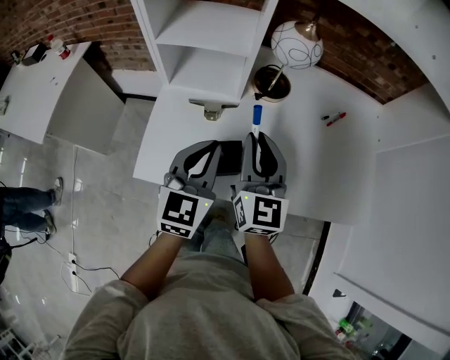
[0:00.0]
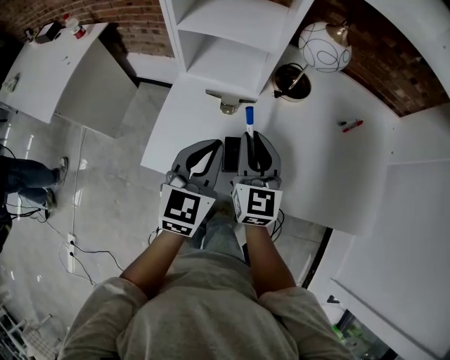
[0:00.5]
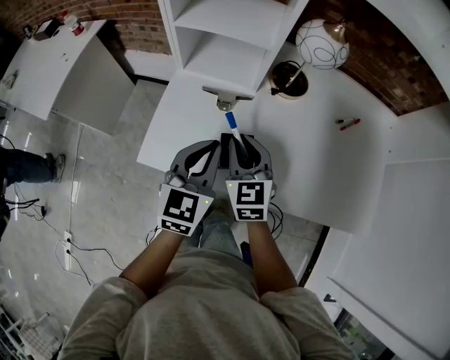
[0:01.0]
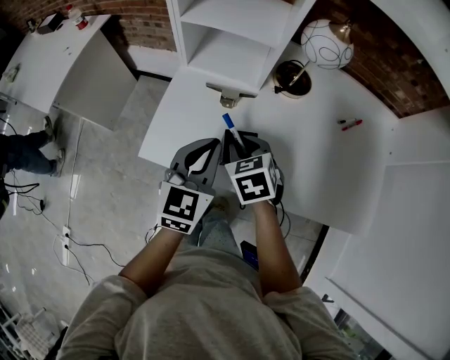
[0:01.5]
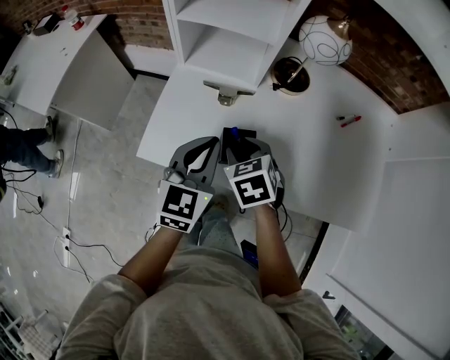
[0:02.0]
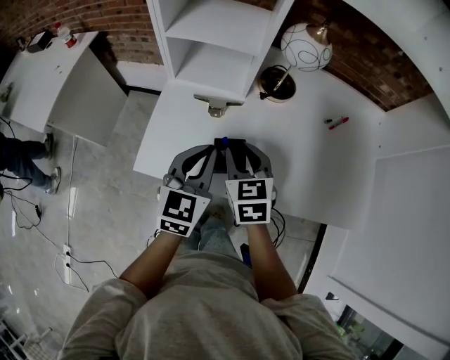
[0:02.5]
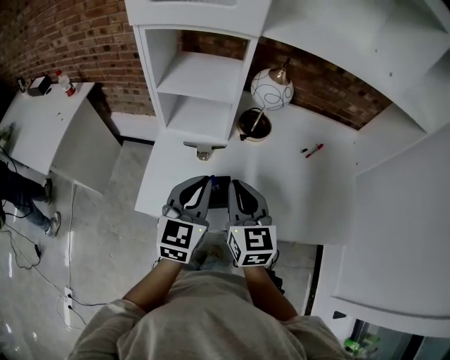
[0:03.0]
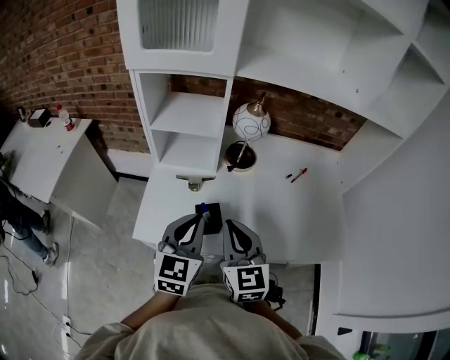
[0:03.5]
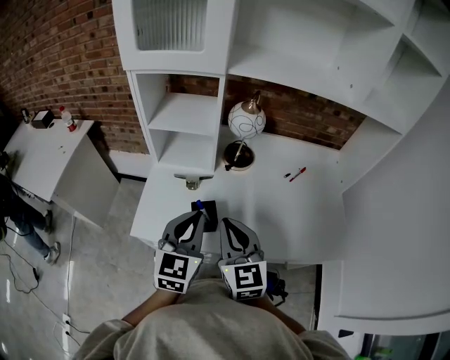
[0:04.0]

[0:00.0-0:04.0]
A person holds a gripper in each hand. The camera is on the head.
0:00.0 to 0:02.0: The right gripper is displaced downward and to the left by roughly 15 cm, and tips its fingers downward by about 50 degrees. Meanwhile the left gripper shifts by about 5 cm.
0:02.0 to 0:04.0: The right gripper is displaced upward and backward by roughly 20 cm, tips its fingers upward by some 50 degrees, and closes its fingers. Meanwhile the left gripper travels upward, backward and to the right by roughly 15 cm.

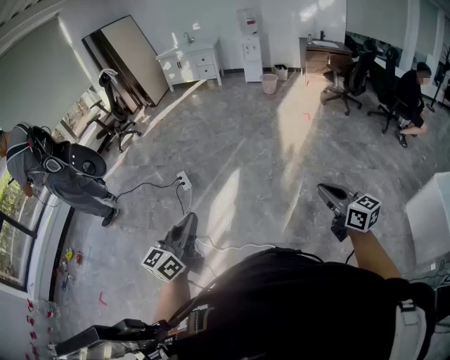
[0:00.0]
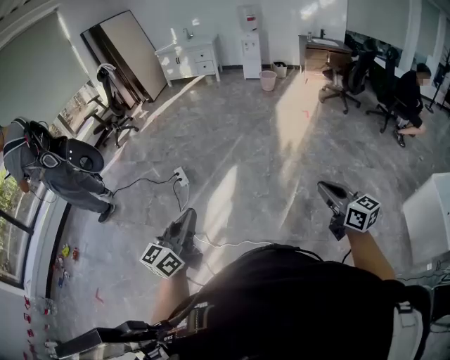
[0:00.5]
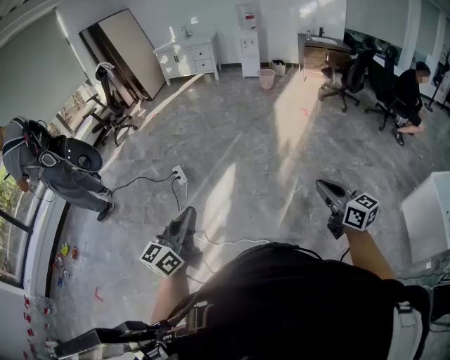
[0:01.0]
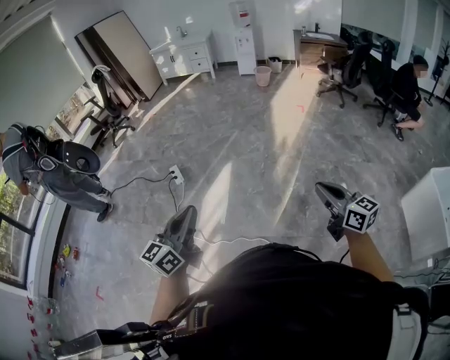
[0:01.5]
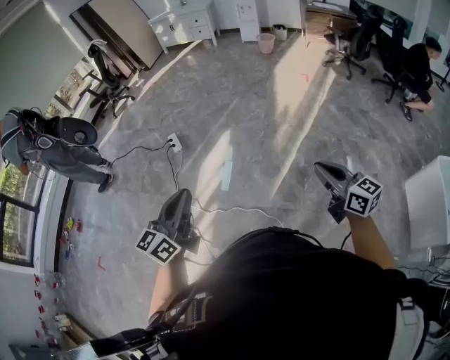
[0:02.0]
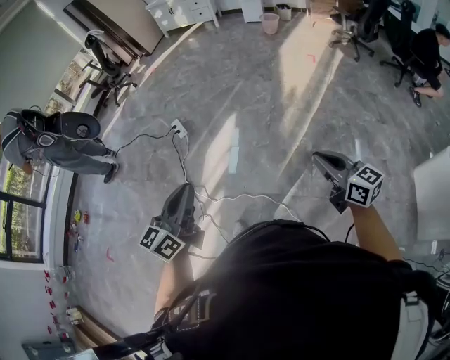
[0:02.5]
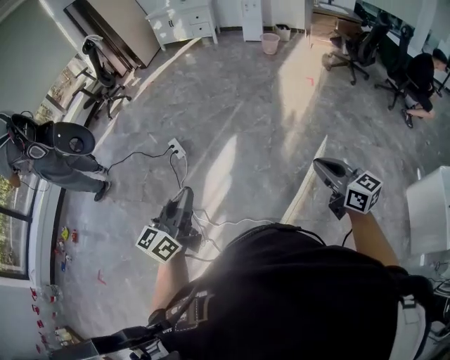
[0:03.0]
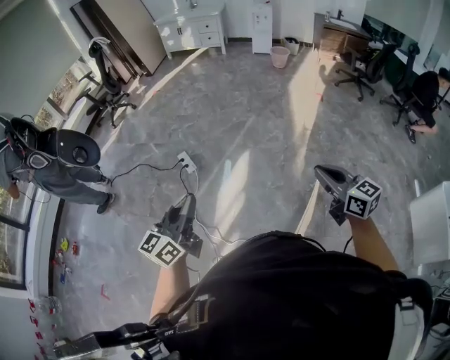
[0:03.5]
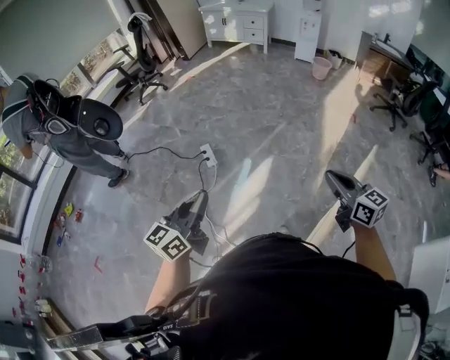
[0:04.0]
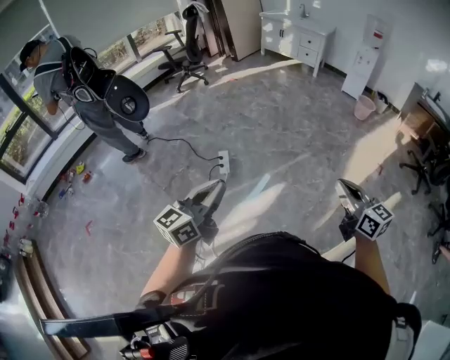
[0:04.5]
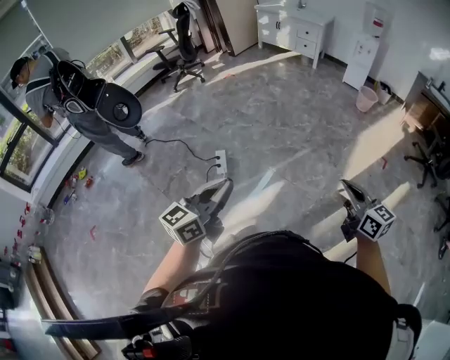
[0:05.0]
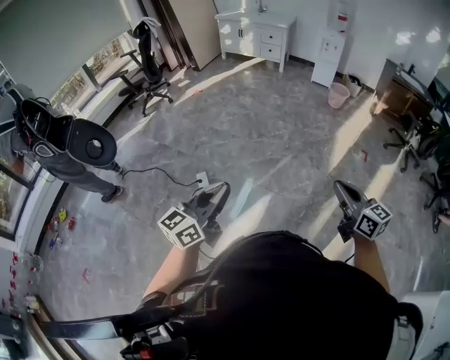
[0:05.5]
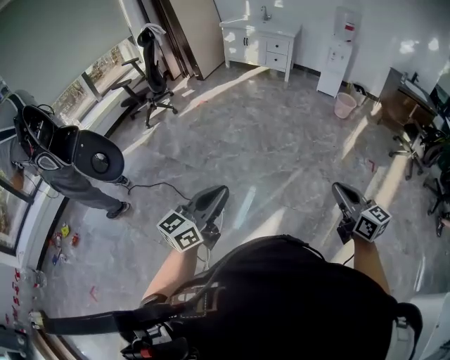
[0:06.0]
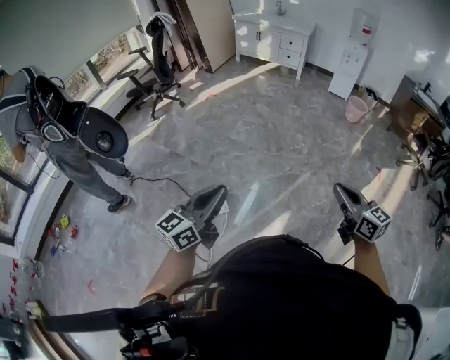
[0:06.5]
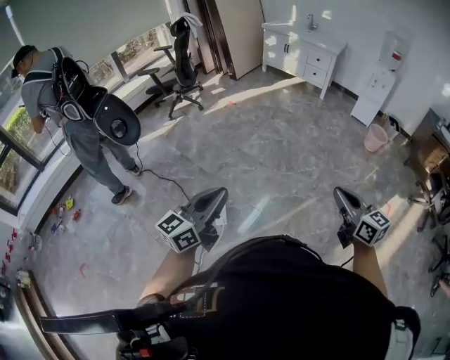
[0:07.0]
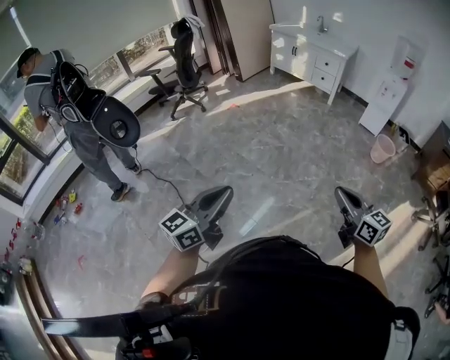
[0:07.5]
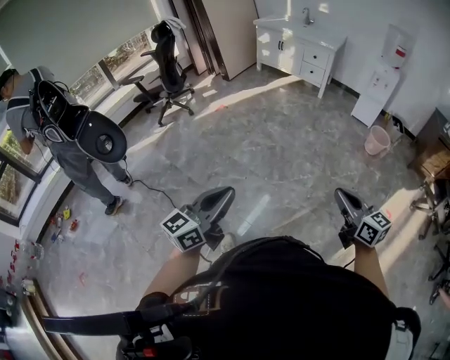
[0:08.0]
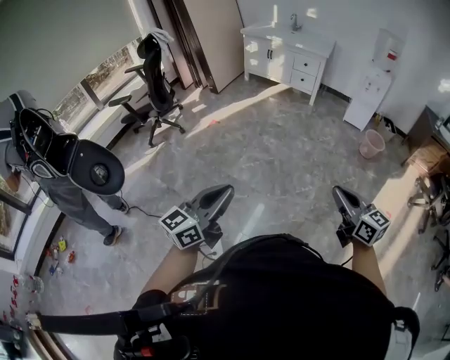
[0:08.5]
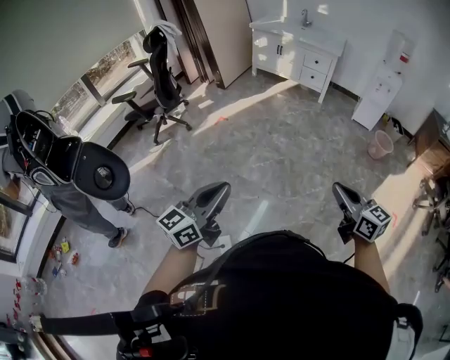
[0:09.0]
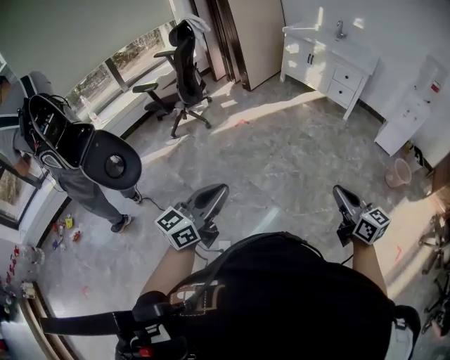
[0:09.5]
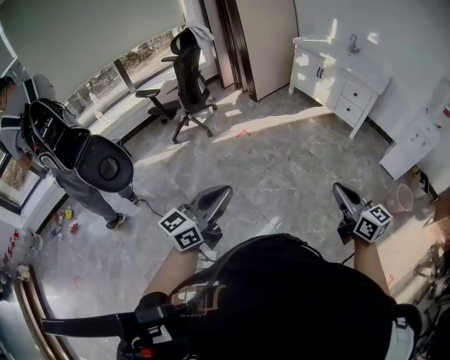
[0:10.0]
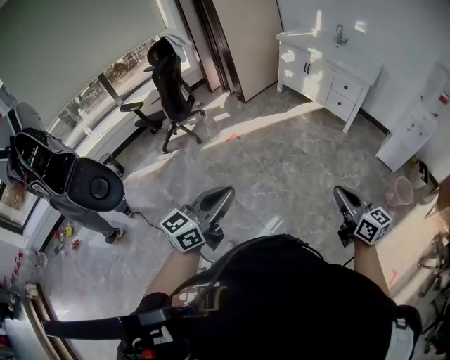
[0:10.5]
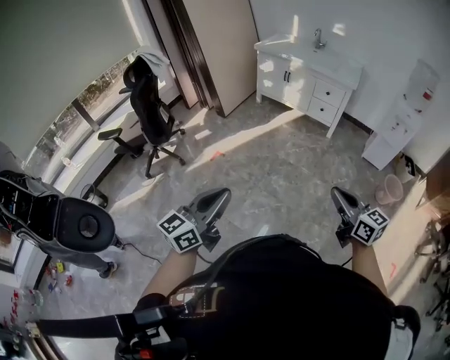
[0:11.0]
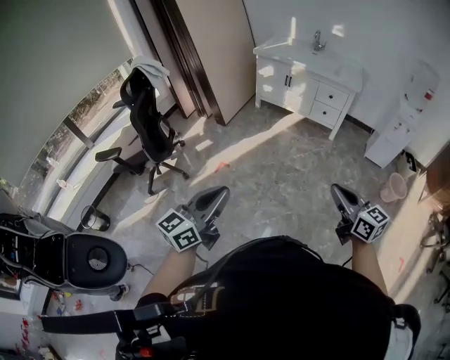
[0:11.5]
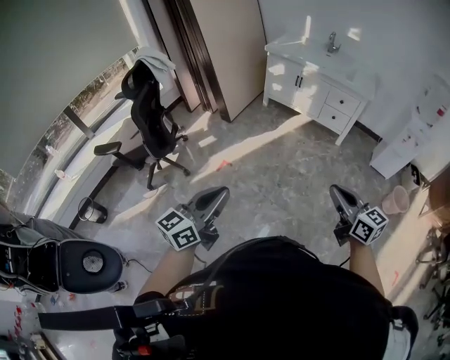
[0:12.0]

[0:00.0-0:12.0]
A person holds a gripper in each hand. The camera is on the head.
0:00.0 to 0:02.0: Both grippers move to the right, about 15 cm.
0:02.0 to 0:04.0: The pair of grippers is taken forward and to the left, some 40 cm.
0:04.0 to 0:06.0: The two grippers travel together, forward, some 40 cm.
0:06.0 to 0:08.0: The grippers both shift forward by some 40 cm.
0:08.0 to 0:10.0: The pair of grippers is taken forward, roughly 40 cm.
0:10.0 to 0:12.0: Both grippers travel together forward, approximately 35 cm.

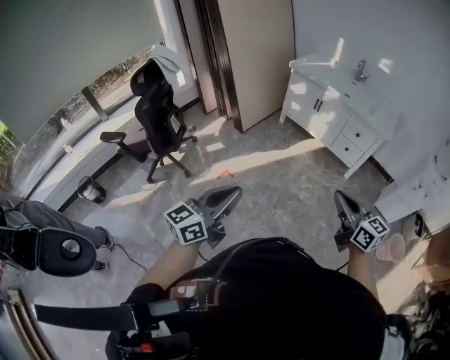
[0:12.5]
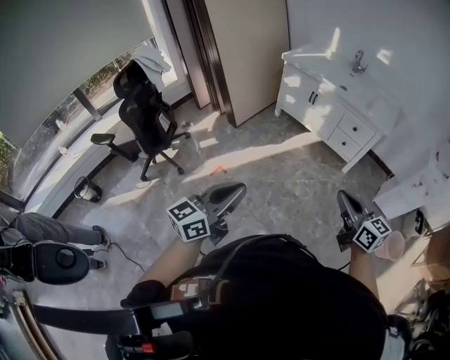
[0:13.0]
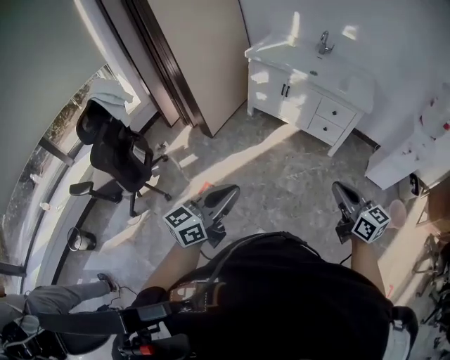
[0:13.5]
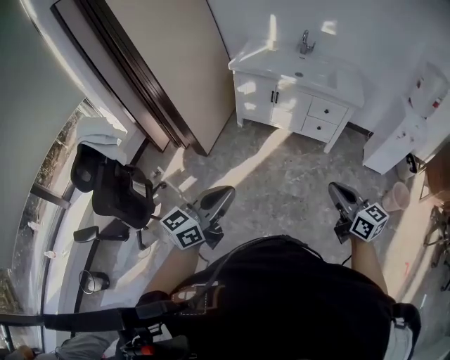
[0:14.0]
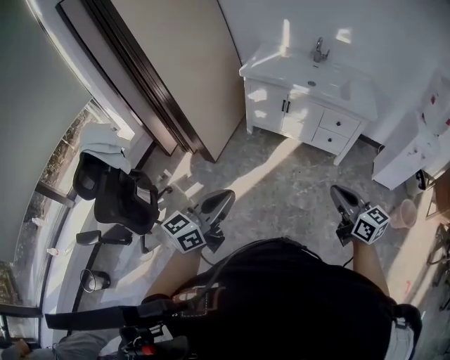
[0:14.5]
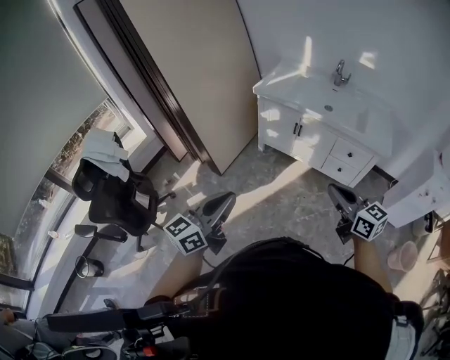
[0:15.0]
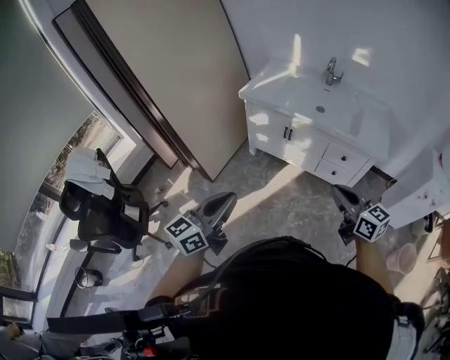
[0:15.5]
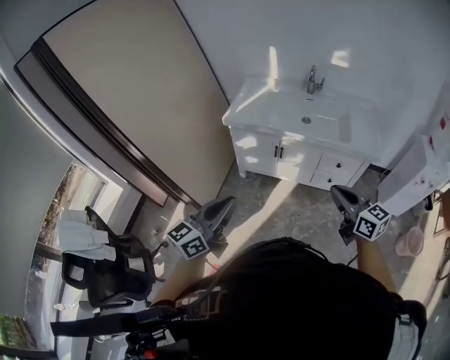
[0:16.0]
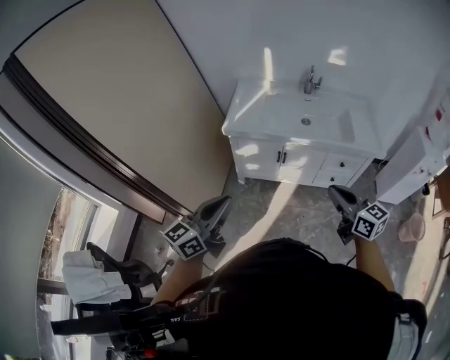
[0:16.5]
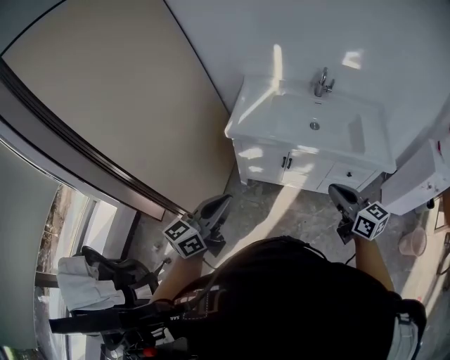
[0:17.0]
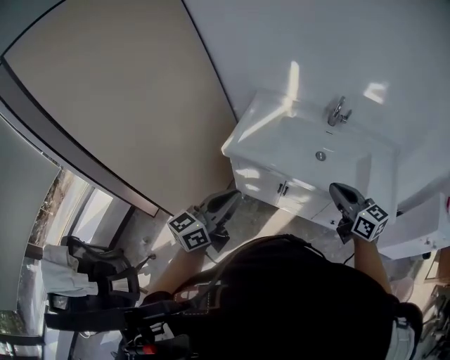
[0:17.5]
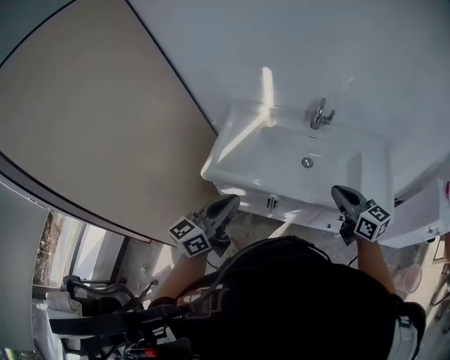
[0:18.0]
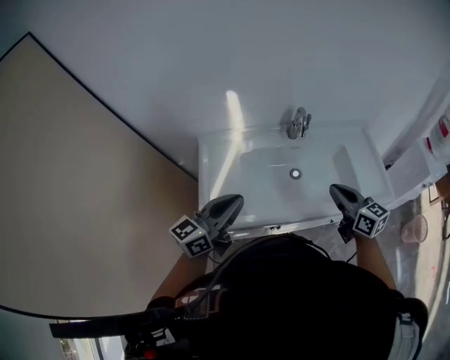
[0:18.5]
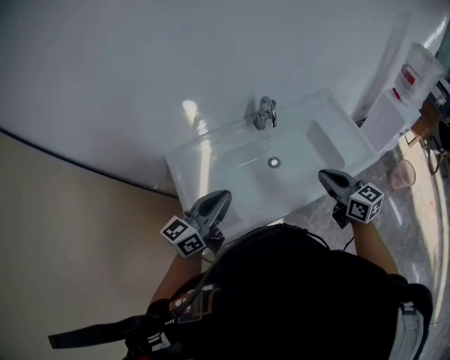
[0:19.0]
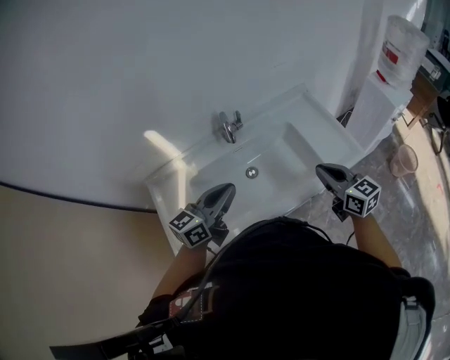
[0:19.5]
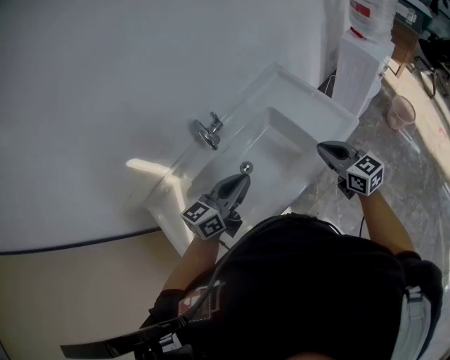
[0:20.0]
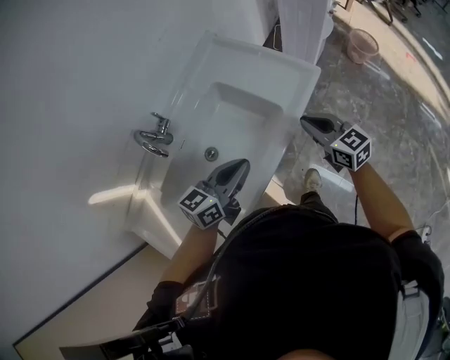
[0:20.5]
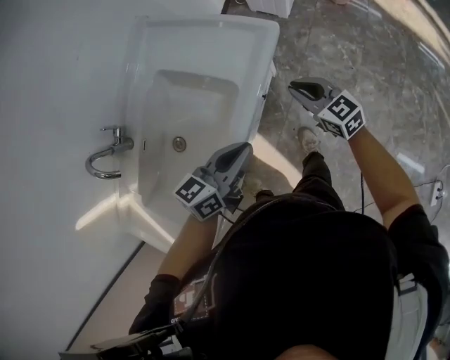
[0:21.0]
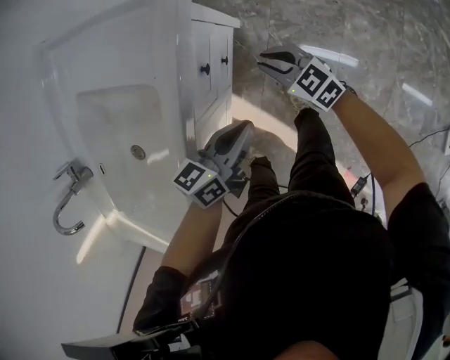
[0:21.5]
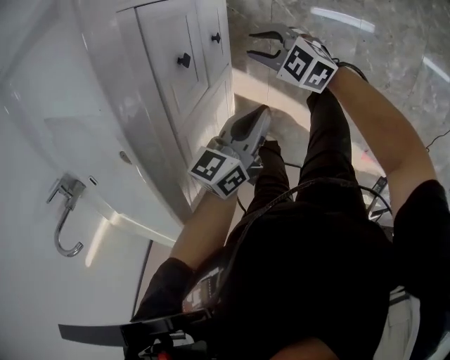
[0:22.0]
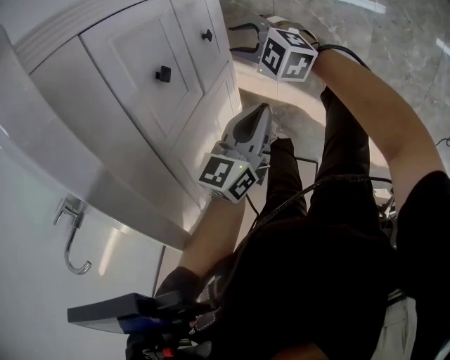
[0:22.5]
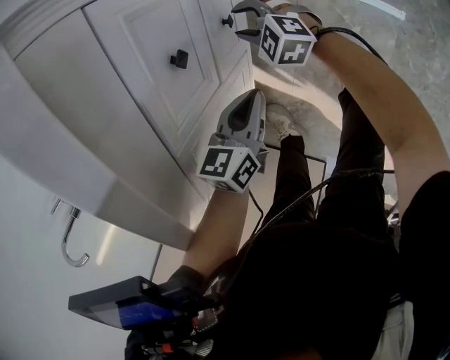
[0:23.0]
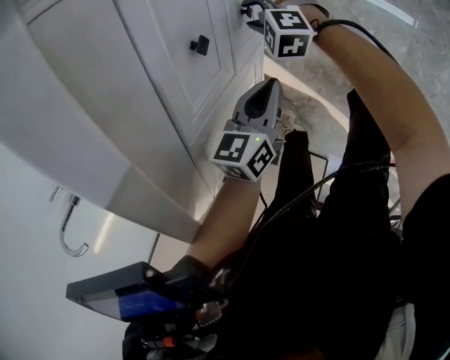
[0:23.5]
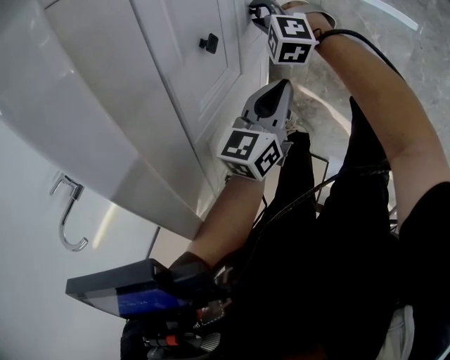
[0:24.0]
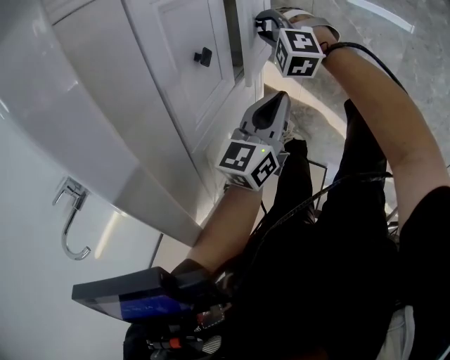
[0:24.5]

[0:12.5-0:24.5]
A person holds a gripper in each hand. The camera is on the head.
0:12.5 to 0:14.5: Both grippers move forward, approximately 30 cm.
0:14.5 to 0:16.5: Both grippers are carried forward, roughly 40 cm.
0:16.5 to 0:18.5: Both grippers are carried approximately 50 cm. The left gripper turns by approximately 20 degrees.
0:18.5 to 0:20.5: The right gripper shifts by some 30 cm, and swivels approximately 40 degrees. The left gripper ends up some 40 cm from where it was, and turns by approximately 50 degrees.
0:20.5 to 0:22.5: Both grippers travel together downward, approximately 60 cm. The left gripper angles its fingers downward, by approximately 40 degrees. The right gripper opens up.
0:22.5 to 0:24.5: The right gripper heads downward, covering roughly 5 cm, and swivels roughly 20 degrees; the left gripper ends up some 5 cm from where it was.
